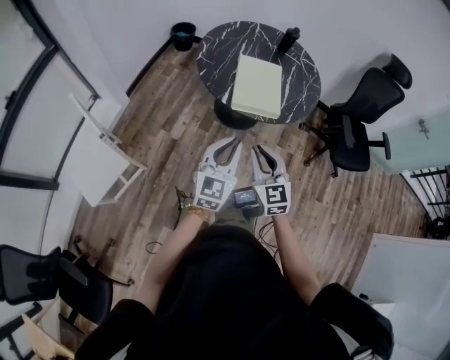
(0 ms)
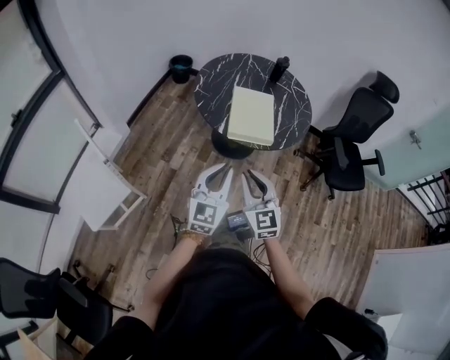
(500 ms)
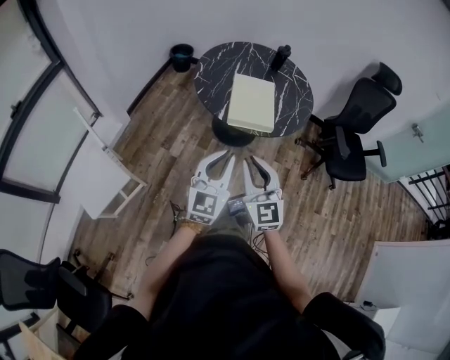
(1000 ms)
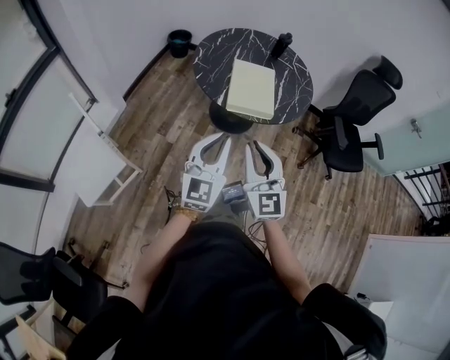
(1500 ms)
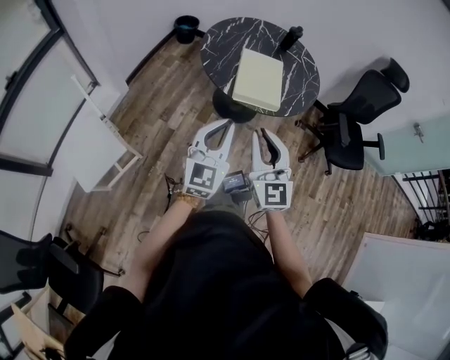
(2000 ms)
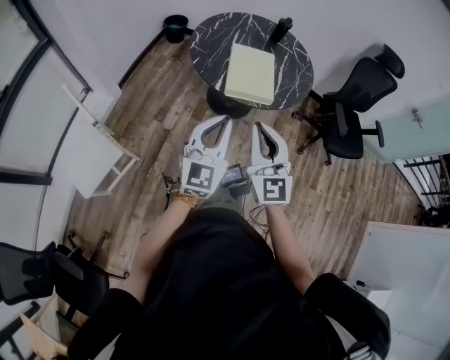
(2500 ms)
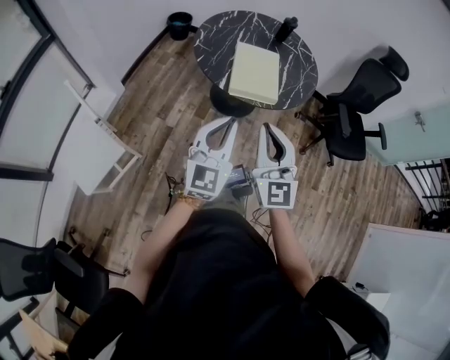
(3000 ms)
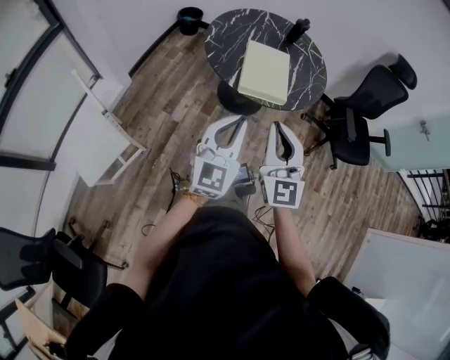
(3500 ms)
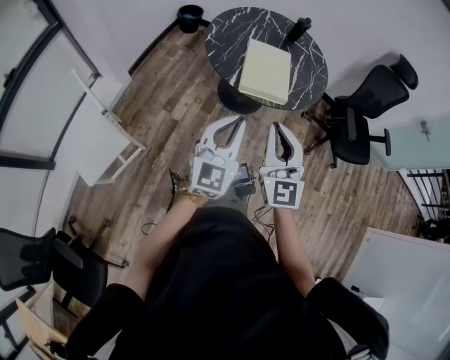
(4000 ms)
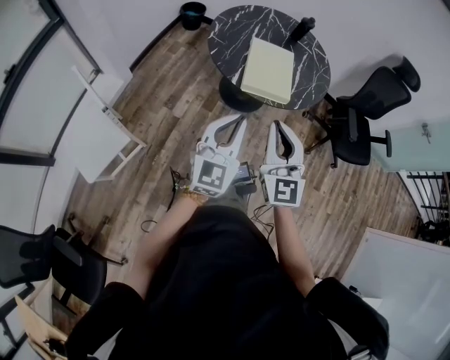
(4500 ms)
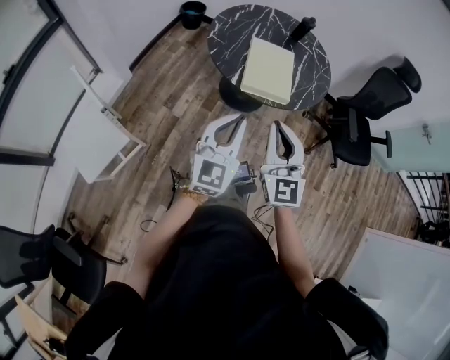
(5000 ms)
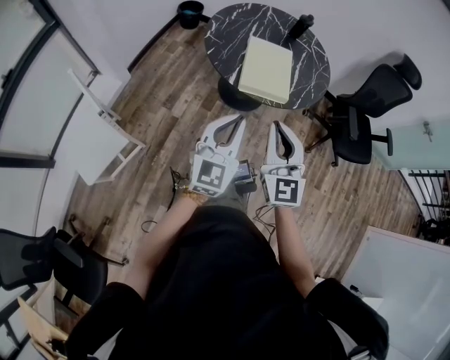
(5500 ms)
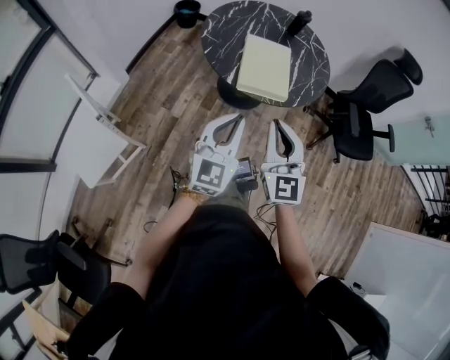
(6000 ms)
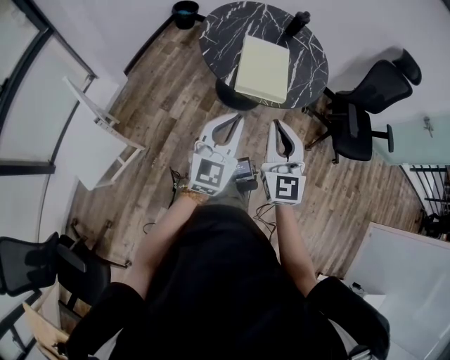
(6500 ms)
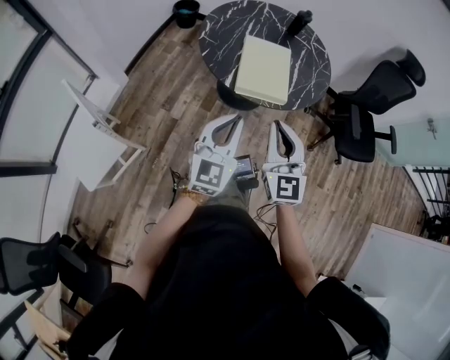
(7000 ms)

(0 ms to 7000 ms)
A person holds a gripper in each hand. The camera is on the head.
0 ms - 2000 ms: The left gripper travels upward by approximately 5 cm; the right gripper travels upward by some 10 cm.
2000 ms - 5000 ms: There are only small adjustments of the grippers.
5000 ms - 7000 ms: The two grippers go some 5 cm forward.

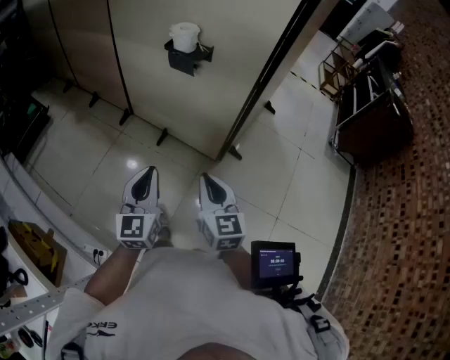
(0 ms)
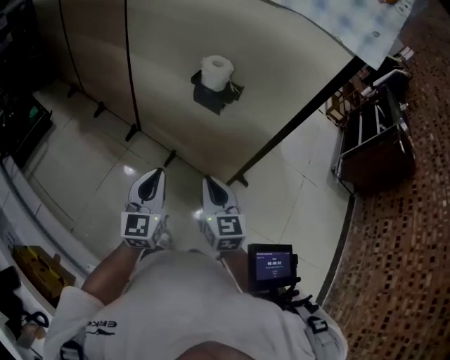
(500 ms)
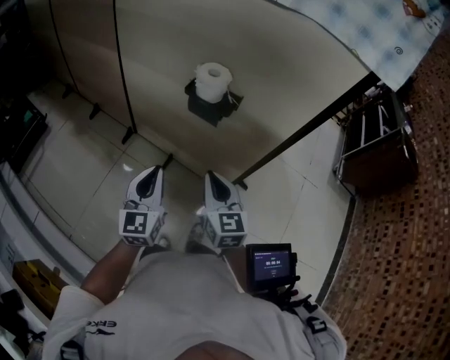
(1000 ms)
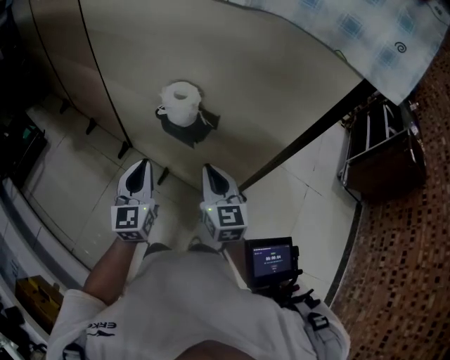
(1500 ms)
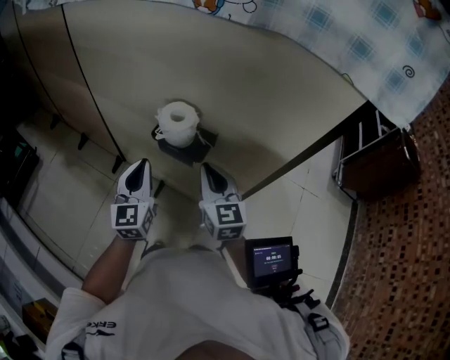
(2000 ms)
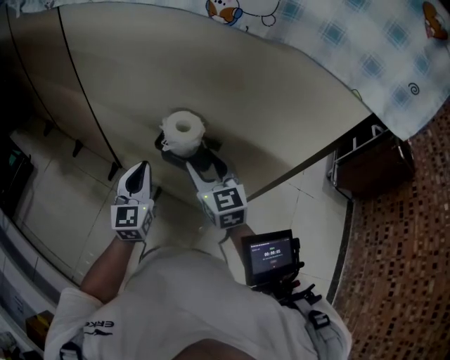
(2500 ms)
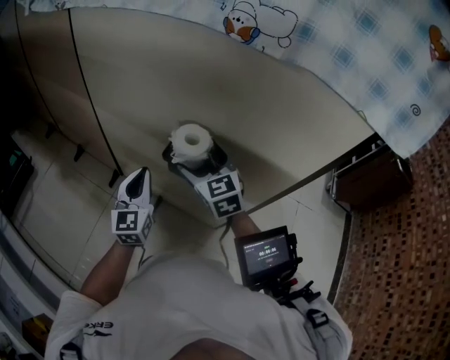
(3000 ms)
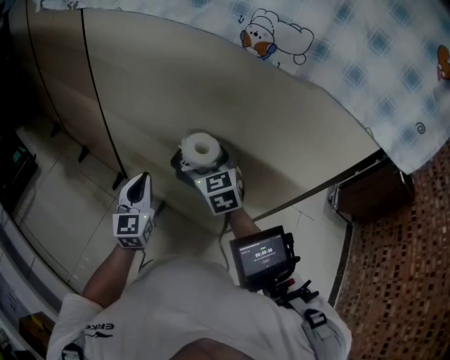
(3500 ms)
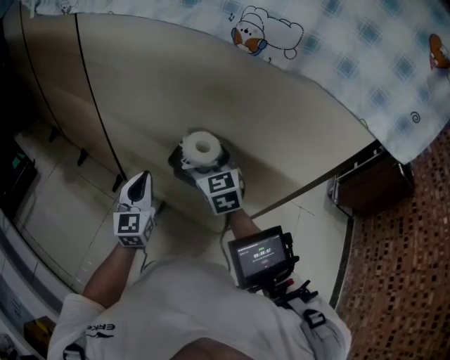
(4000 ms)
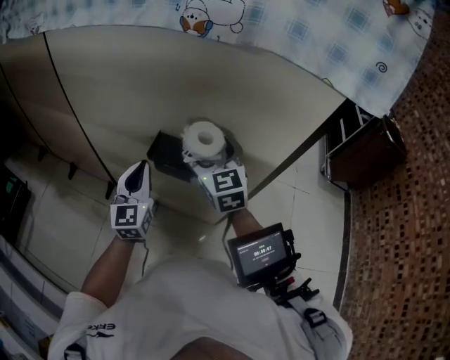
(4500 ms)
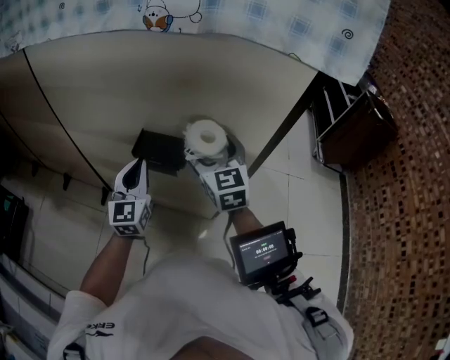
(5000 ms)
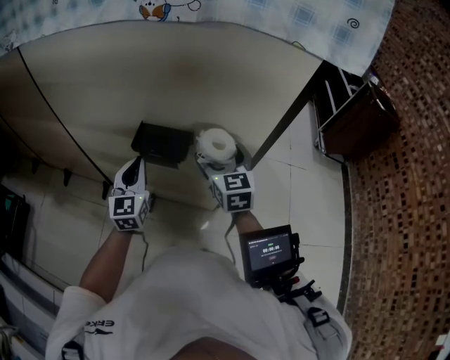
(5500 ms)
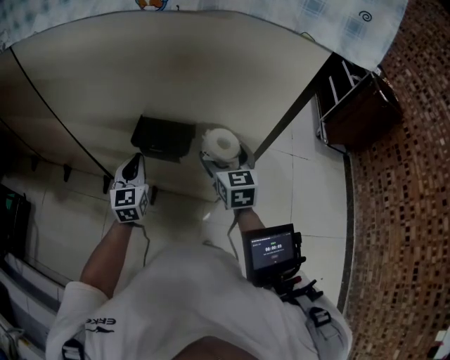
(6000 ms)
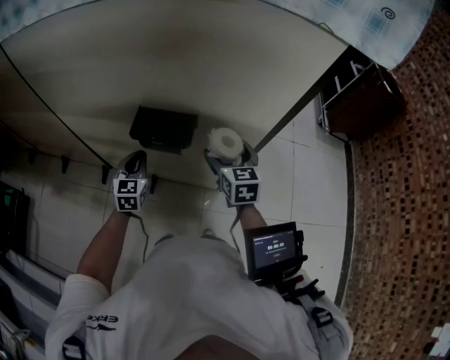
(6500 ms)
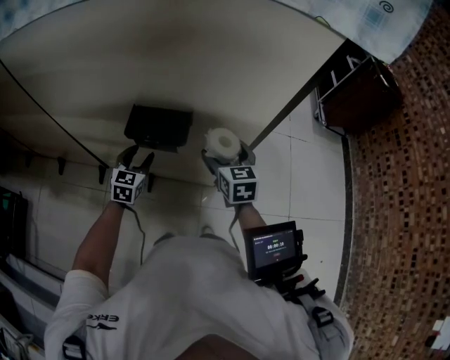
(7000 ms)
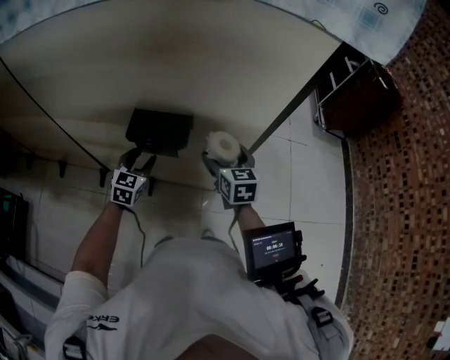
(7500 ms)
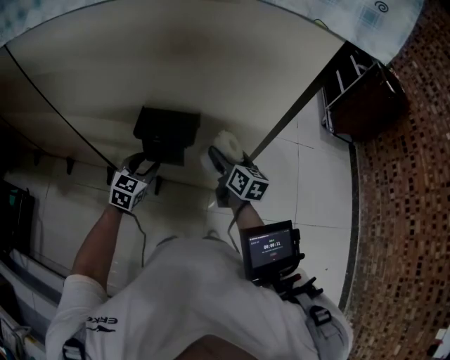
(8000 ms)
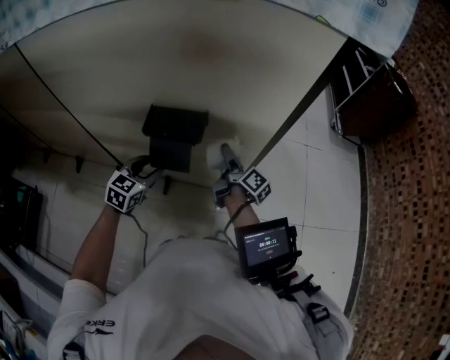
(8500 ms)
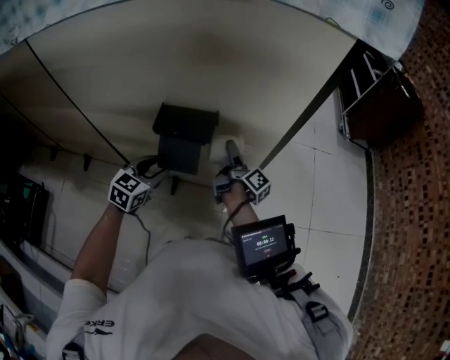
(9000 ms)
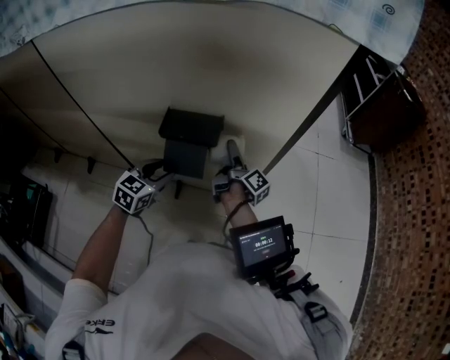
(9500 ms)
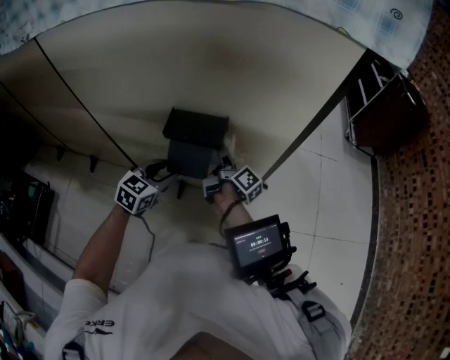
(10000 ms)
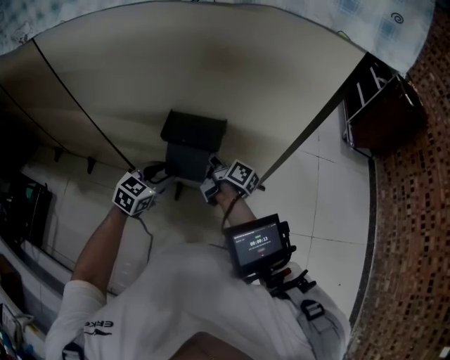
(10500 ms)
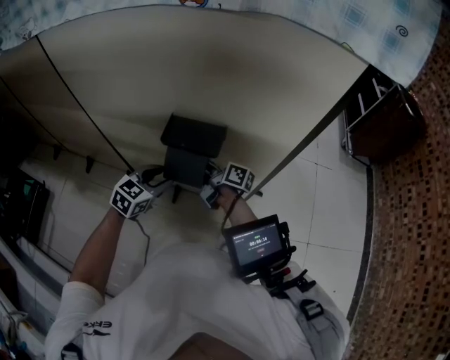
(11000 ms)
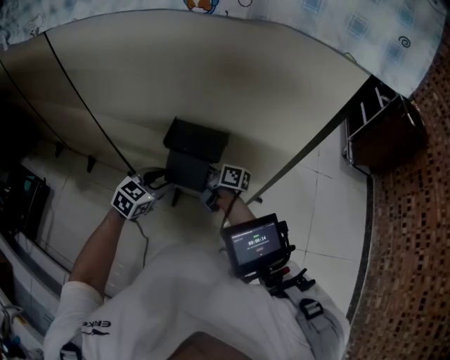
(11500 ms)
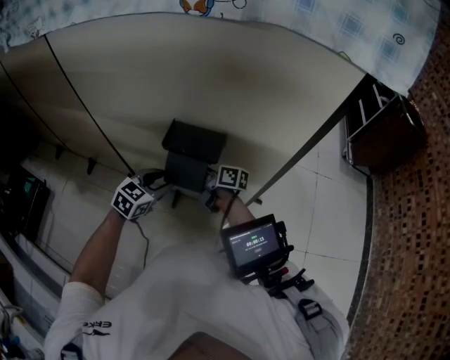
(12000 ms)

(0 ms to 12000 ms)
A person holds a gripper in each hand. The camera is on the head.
0 ms - 2000 ms: The two grippers travel together, forward, approximately 40 cm.
2000 ms - 4000 ms: The right gripper goes some 15 cm forward and to the left, turns by some 20 degrees, and opens. Meanwhile the left gripper is displaced forward and to the left by some 5 cm.
4000 ms - 6000 ms: The right gripper shifts about 20 cm to the right and backward, and changes its angle by approximately 30 degrees; the left gripper heads to the right and downward, covering about 10 cm.
6000 ms - 8000 ms: Both grippers travel together downward, approximately 10 cm. The right gripper swivels roughly 30 degrees. Meanwhile the left gripper turns by approximately 30 degrees, and opens.
8000 ms - 10000 ms: The left gripper ends up some 5 cm from where it was, while the right gripper heads to the left, covering roughly 10 cm, and twists approximately 50 degrees clockwise, seen from behind.
10000 ms - 12000 ms: The right gripper travels to the left by some 10 cm, and rotates approximately 50 degrees.

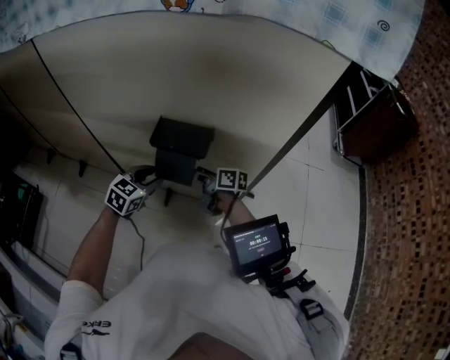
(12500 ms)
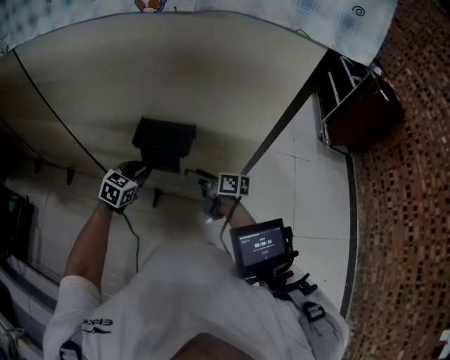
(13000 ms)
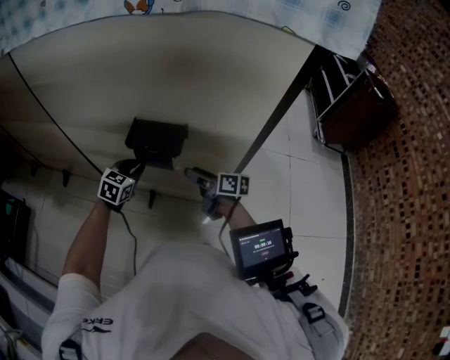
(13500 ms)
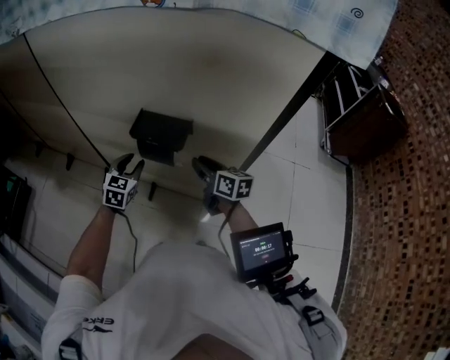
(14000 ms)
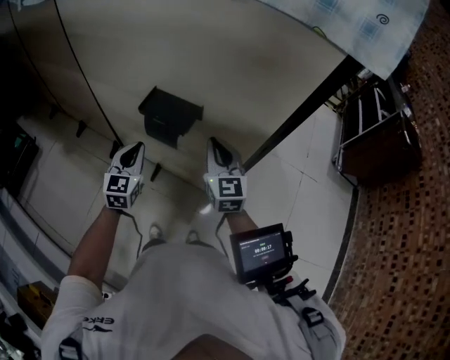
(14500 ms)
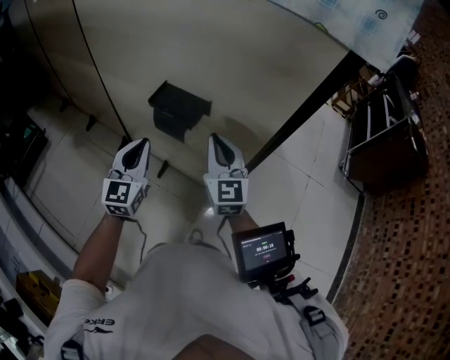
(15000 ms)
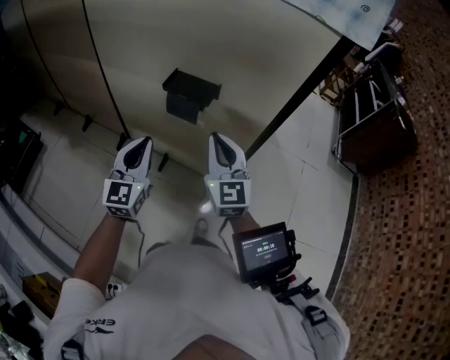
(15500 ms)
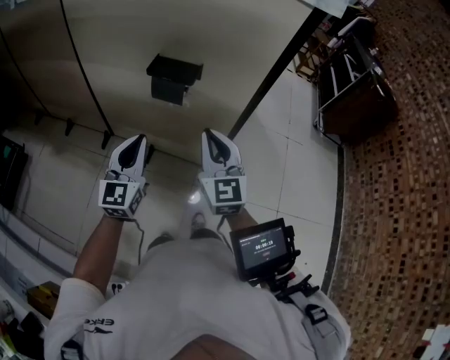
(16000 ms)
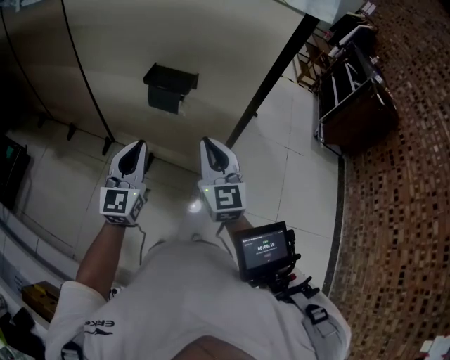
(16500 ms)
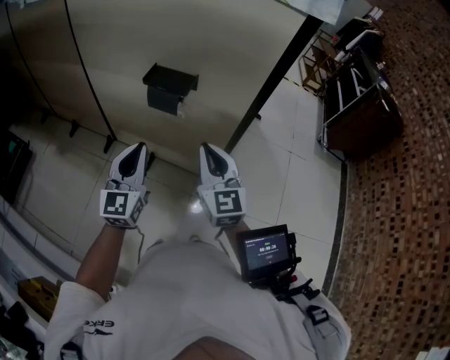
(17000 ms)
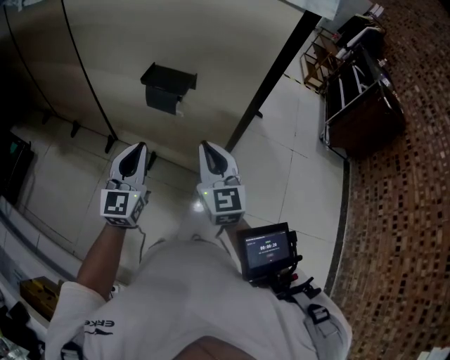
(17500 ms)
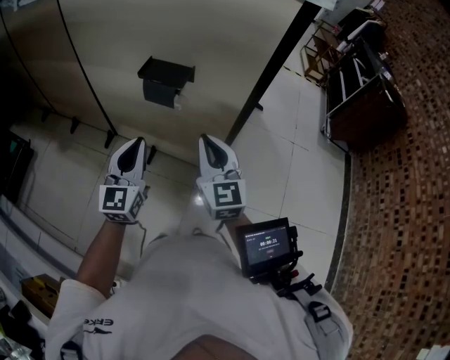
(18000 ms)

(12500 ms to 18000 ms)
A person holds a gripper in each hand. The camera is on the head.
12500 ms - 14500 ms: The right gripper moves upward and to the right, some 20 cm, rolls counterclockwise, seen from behind, by approximately 60 degrees, and closes up, while the left gripper travels upward by roughly 5 cm, changes its angle by some 40 degrees, and closes up.
14500 ms - 16000 ms: The right gripper moves backward, roughly 20 cm. The left gripper is displaced backward and upward by approximately 20 cm.
16000 ms - 18000 ms: The grippers make only small movements.

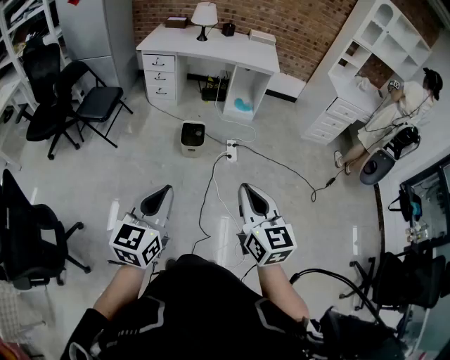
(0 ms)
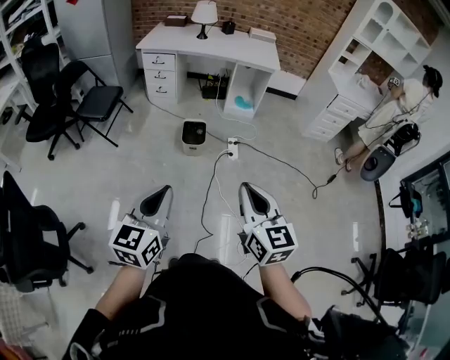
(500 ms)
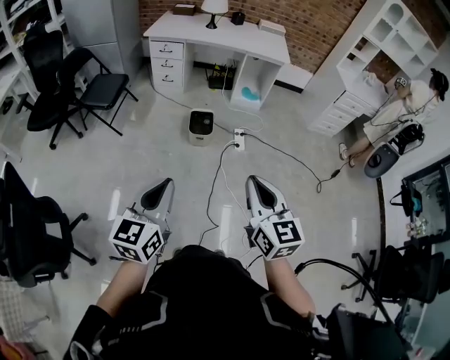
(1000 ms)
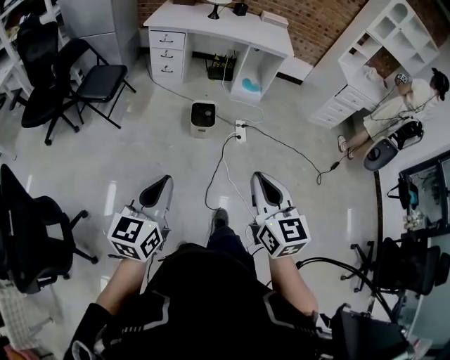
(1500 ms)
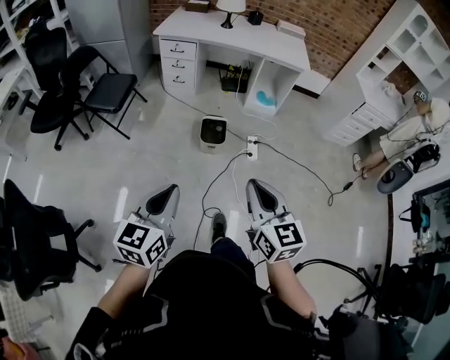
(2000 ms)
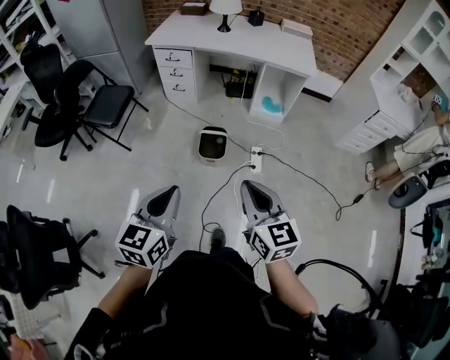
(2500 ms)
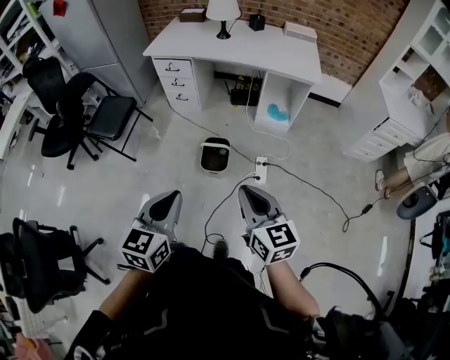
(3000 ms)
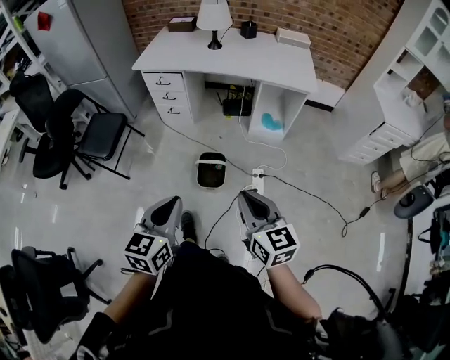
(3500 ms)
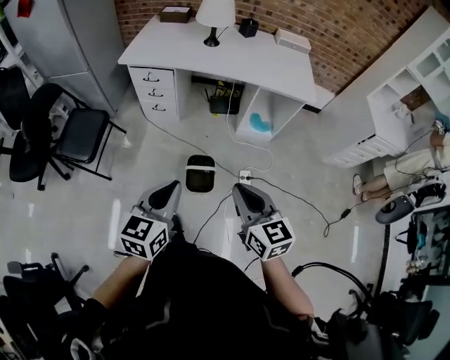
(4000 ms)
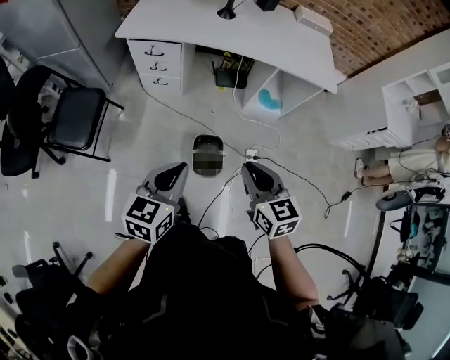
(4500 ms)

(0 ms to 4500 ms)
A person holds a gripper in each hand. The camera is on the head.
0 ms - 2000 ms: The right gripper is displaced forward and to the left by about 15 cm. Meanwhile the left gripper travels forward, to the left and downward by some 15 cm.
2000 ms - 4500 ms: Both grippers are carried forward, some 50 cm.
